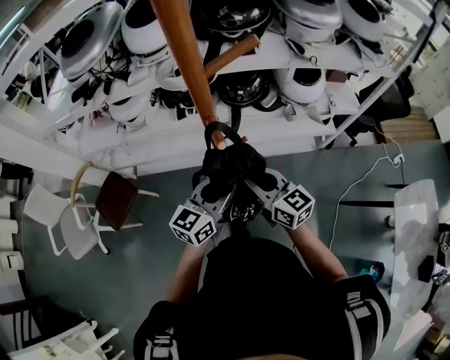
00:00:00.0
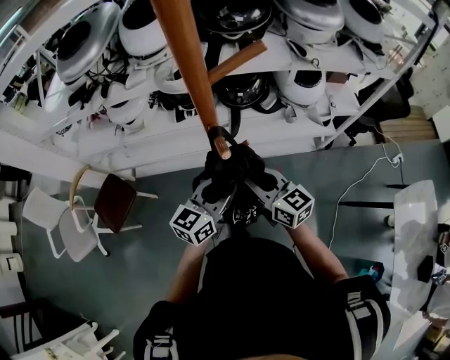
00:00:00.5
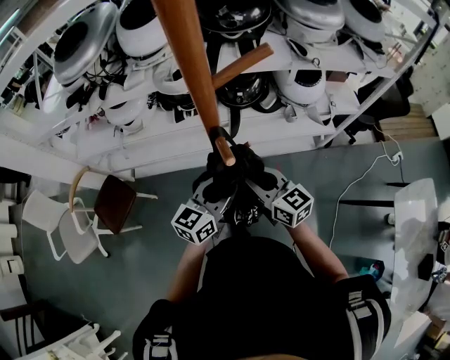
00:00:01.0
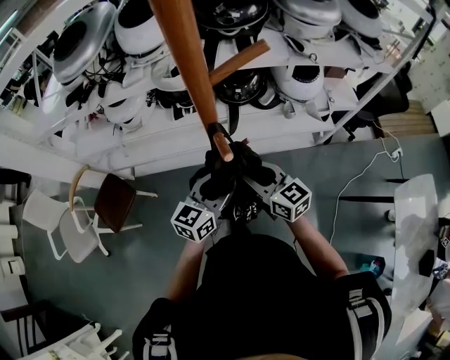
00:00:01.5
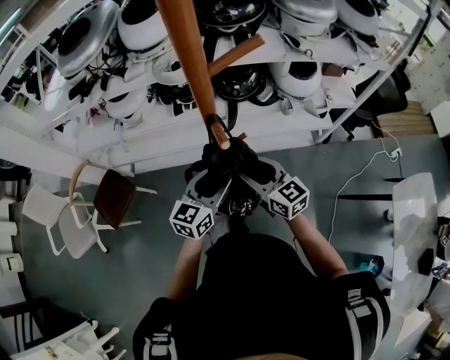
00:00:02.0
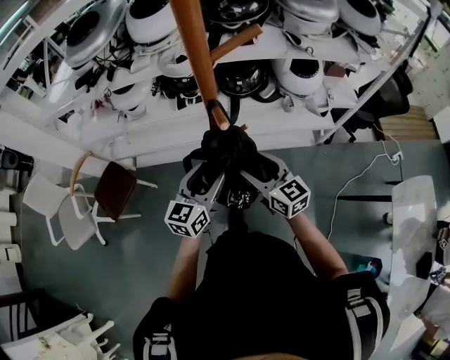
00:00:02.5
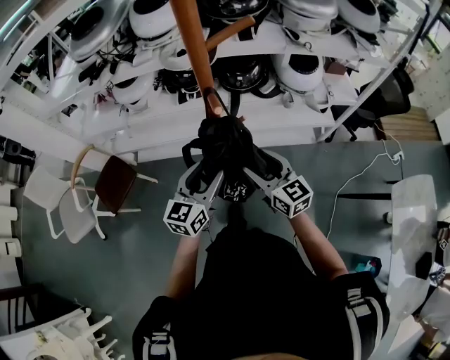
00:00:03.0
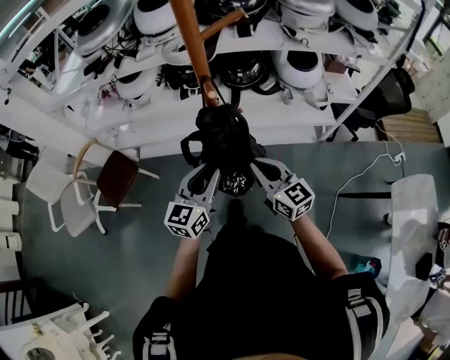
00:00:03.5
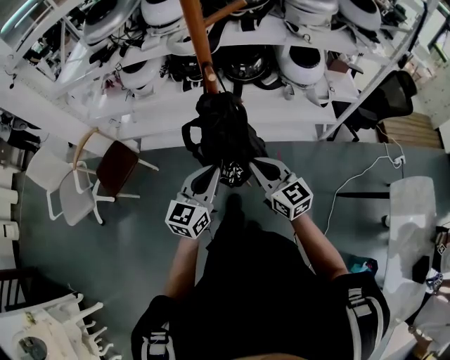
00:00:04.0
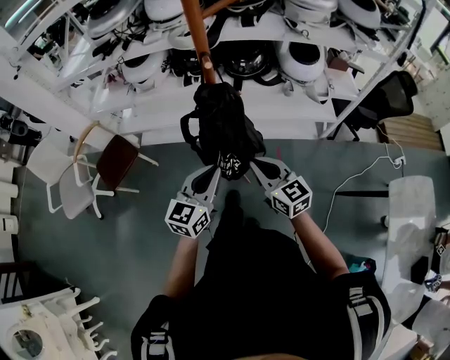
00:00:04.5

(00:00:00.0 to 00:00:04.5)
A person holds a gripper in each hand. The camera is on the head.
00:00:00.0 - 00:00:02.0: The left gripper opens up. The right gripper opens.
00:00:02.0 - 00:00:04.5: The grippers both shift backward by about 20 cm. The right gripper closes; the left gripper closes.

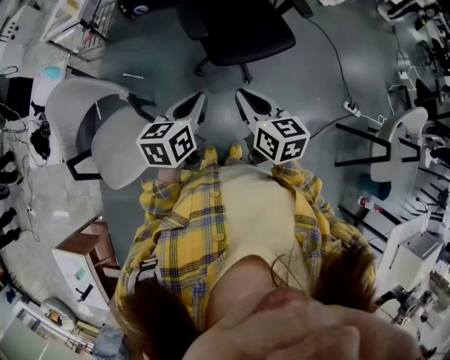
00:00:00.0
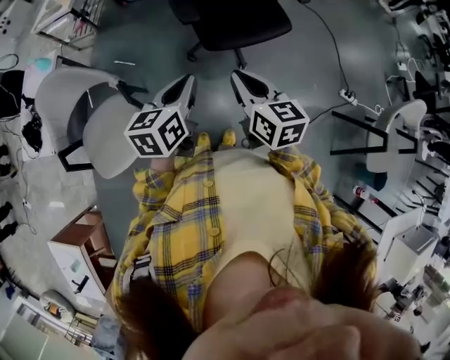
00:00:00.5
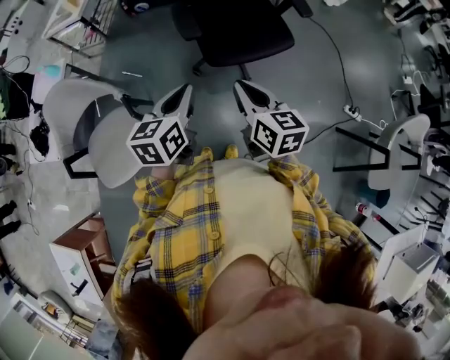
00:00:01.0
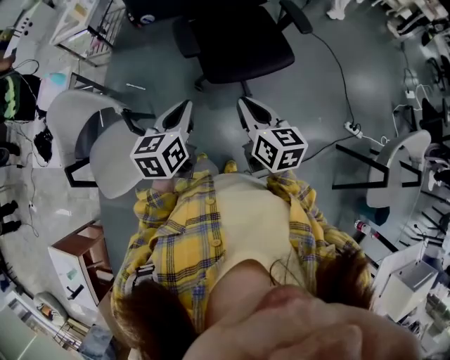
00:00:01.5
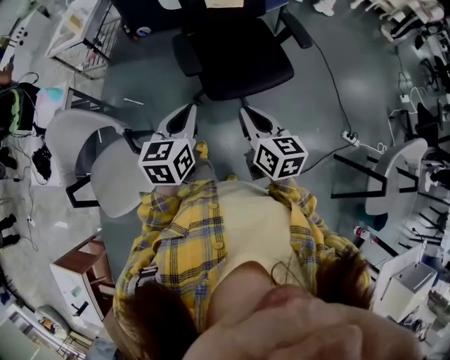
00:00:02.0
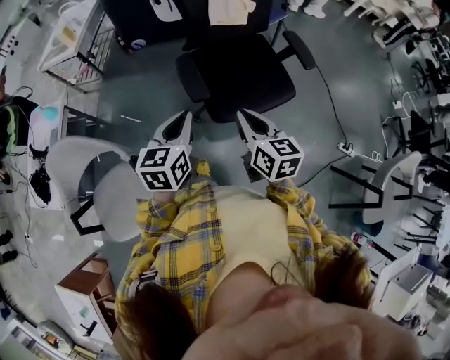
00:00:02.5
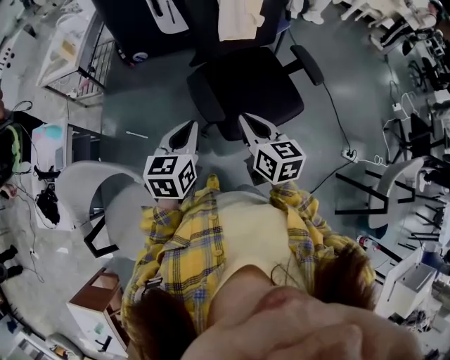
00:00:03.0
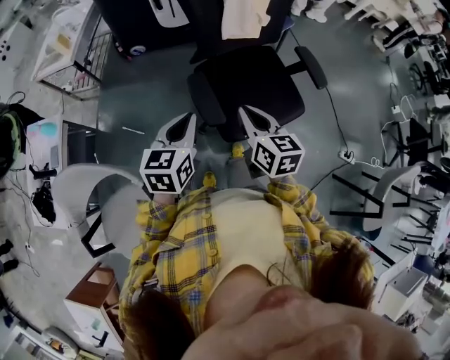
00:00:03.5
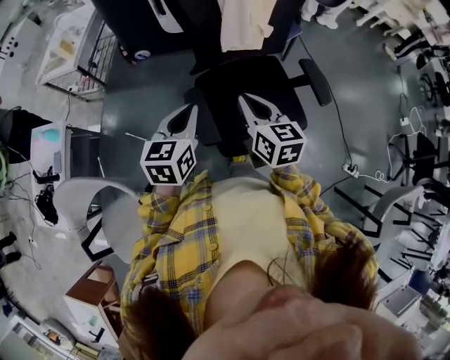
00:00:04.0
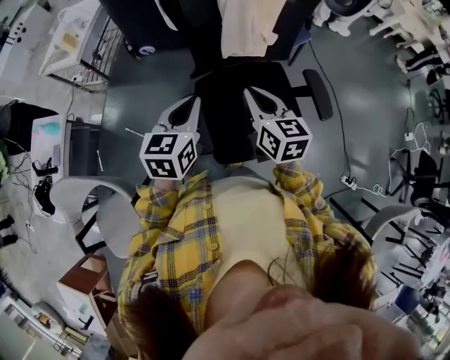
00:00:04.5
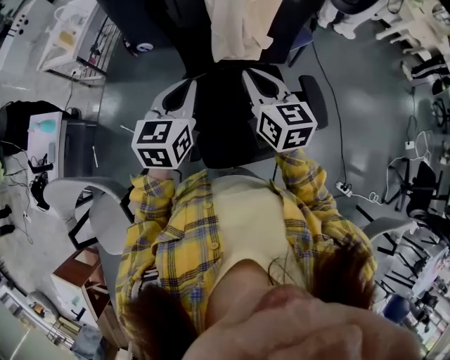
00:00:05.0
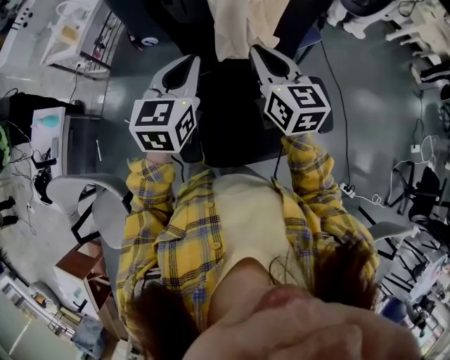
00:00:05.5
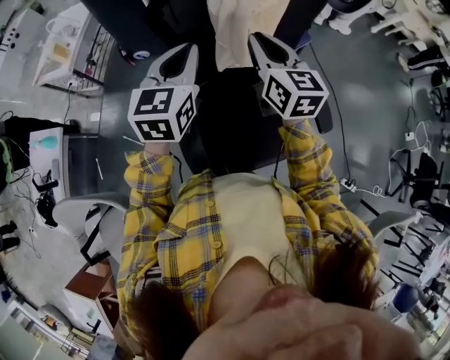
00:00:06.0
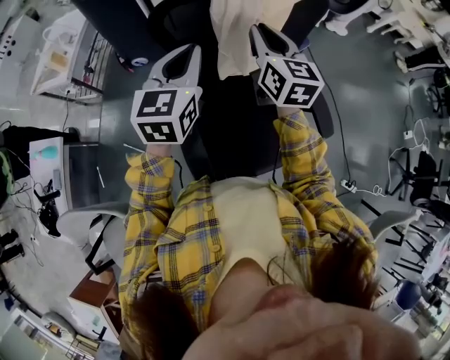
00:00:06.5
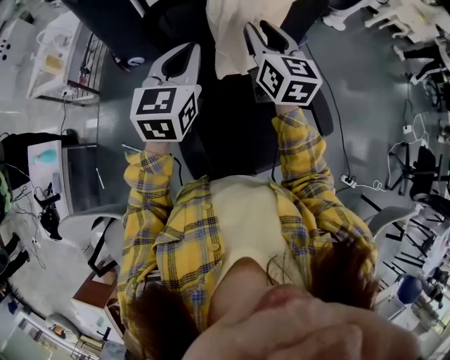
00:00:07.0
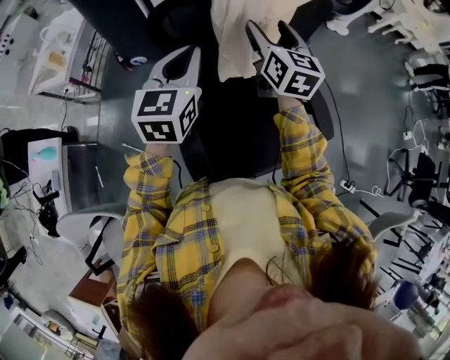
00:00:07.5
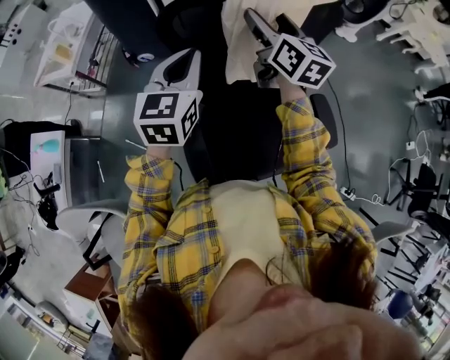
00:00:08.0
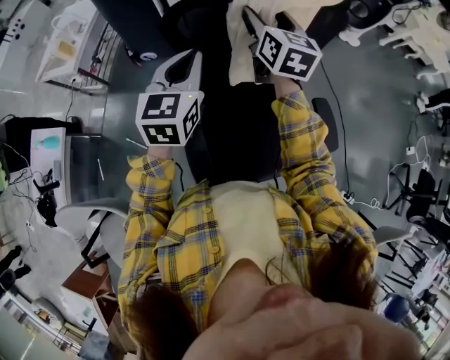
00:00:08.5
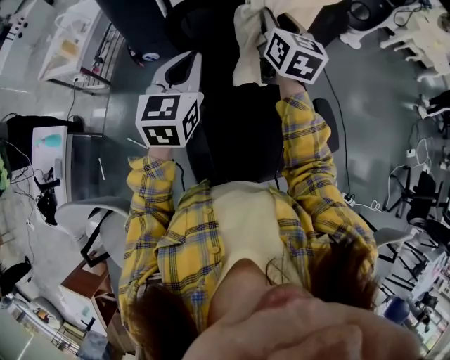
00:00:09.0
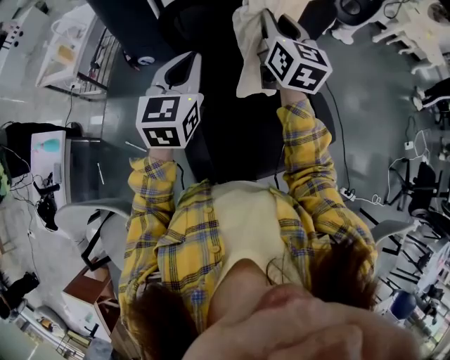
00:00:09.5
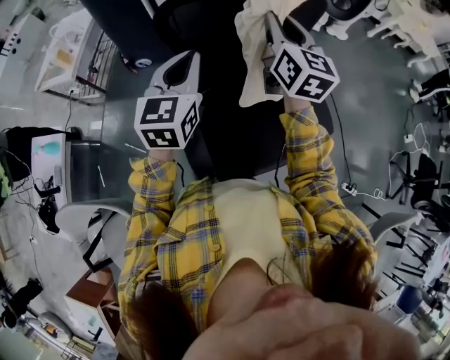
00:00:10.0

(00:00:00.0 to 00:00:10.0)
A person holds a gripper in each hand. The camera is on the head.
00:00:00.0 - 00:00:02.0: The right gripper shifts approximately 15 cm forward and to the right; the left gripper moves forward, some 10 cm.
00:00:02.0 - 00:00:04.0: The two grippers go about 30 cm forward.
00:00:04.0 - 00:00:06.0: The left gripper heads forward and upward, covering some 25 cm. The right gripper moves forward, roughly 25 cm.
00:00:06.0 - 00:00:08.0: The left gripper shifts by about 5 cm; the right gripper is displaced forward by some 10 cm, and opens.
00:00:08.0 - 00:00:10.0: The two grippers go about 5 cm backward. The right gripper closes its fingers.

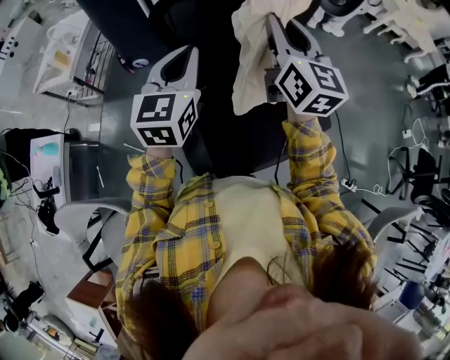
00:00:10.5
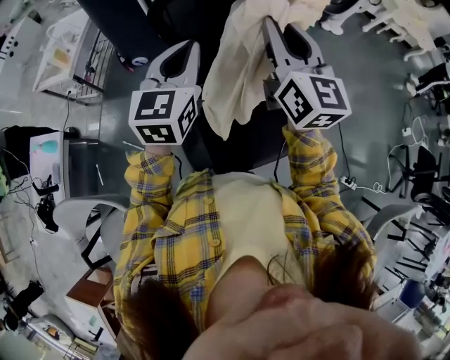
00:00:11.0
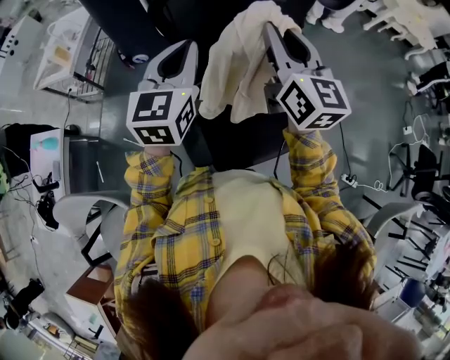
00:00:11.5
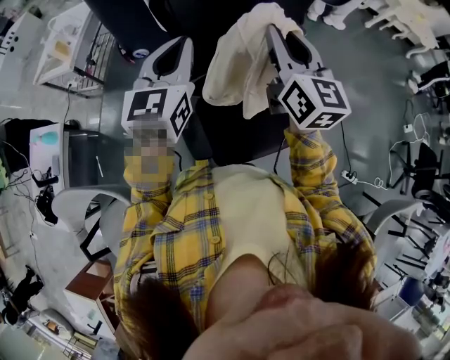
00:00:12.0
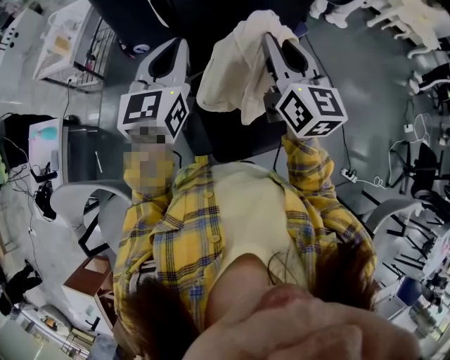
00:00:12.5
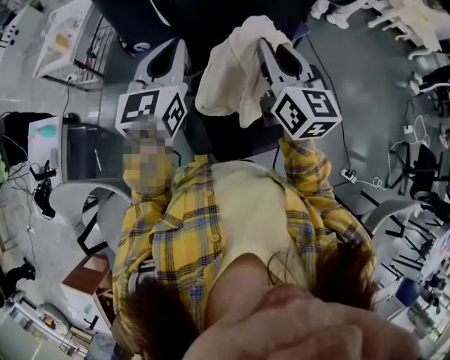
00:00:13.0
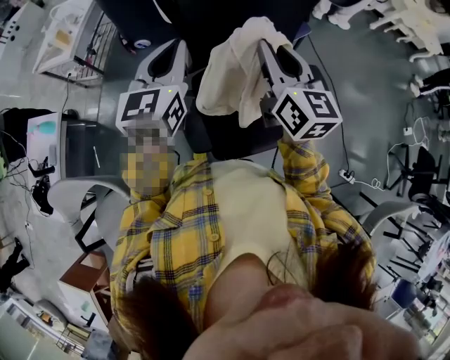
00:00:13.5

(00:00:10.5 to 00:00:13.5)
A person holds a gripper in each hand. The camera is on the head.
00:00:10.5 - 00:00:12.0: The right gripper shifts about 5 cm backward.
00:00:12.0 - 00:00:13.5: The right gripper shifts by about 5 cm.

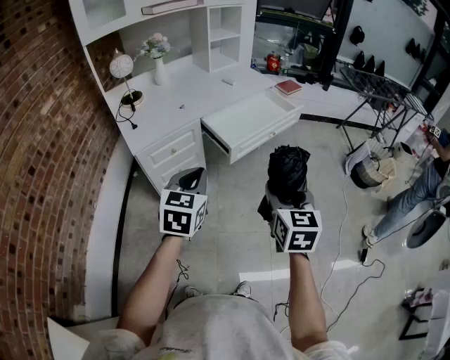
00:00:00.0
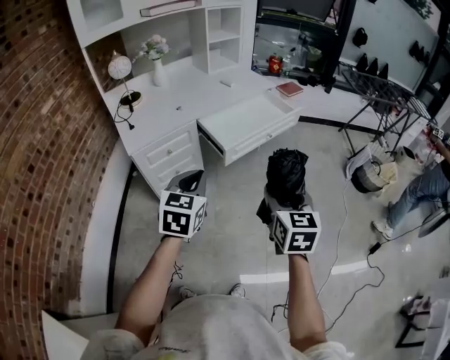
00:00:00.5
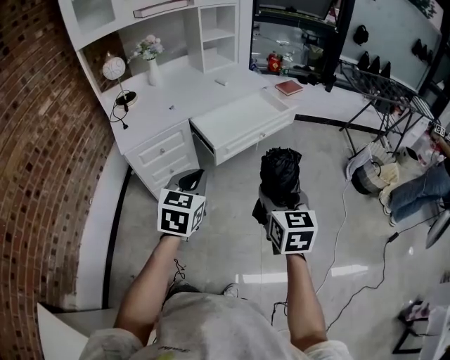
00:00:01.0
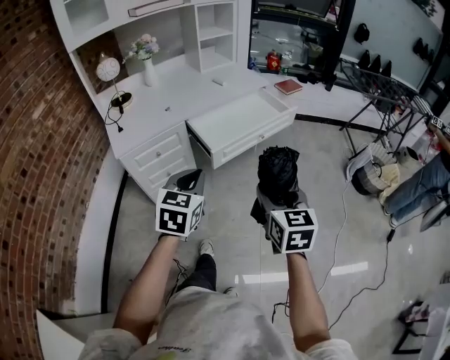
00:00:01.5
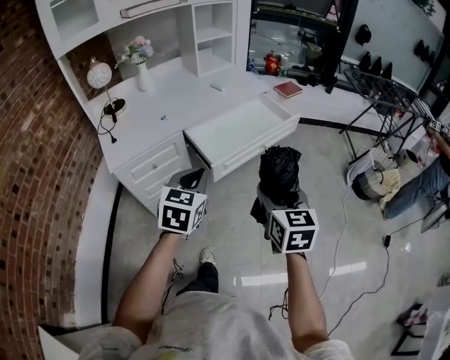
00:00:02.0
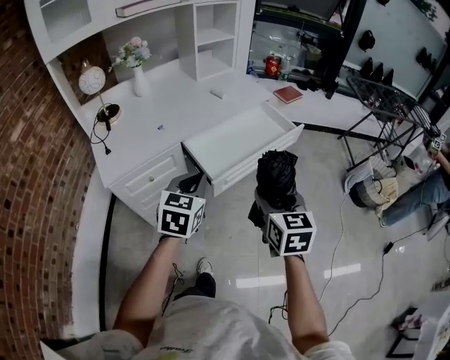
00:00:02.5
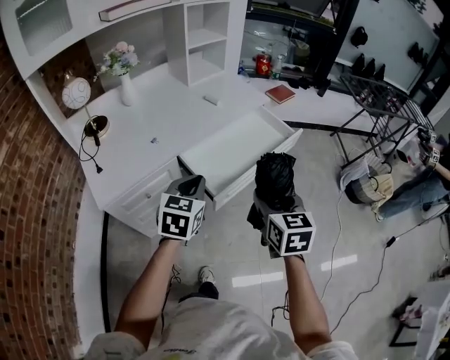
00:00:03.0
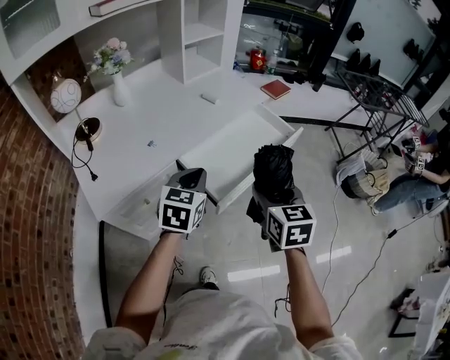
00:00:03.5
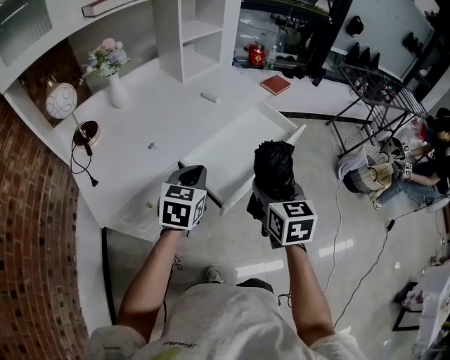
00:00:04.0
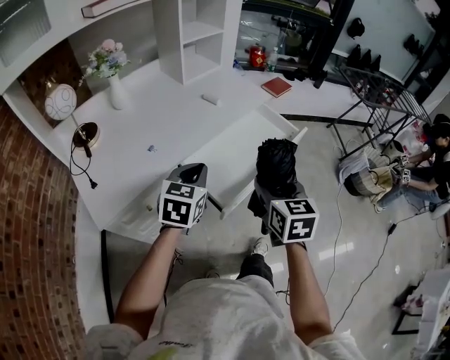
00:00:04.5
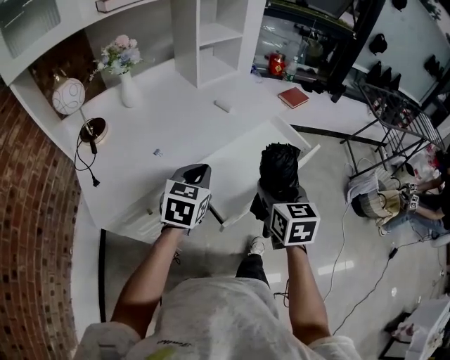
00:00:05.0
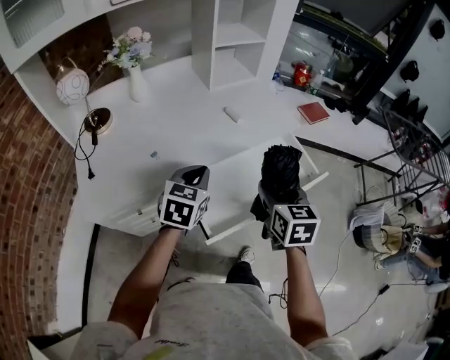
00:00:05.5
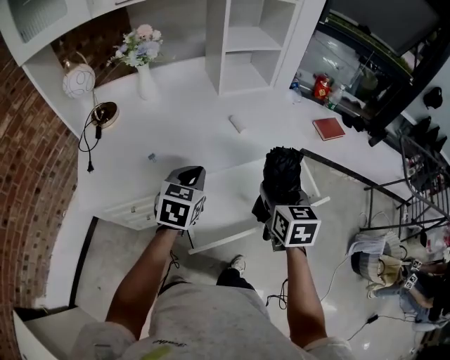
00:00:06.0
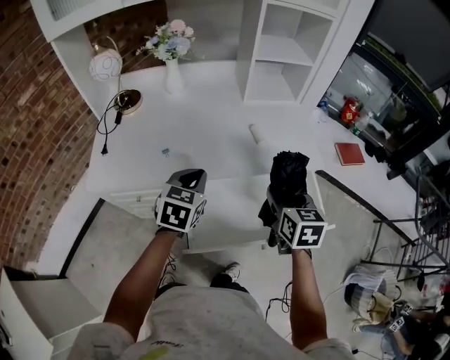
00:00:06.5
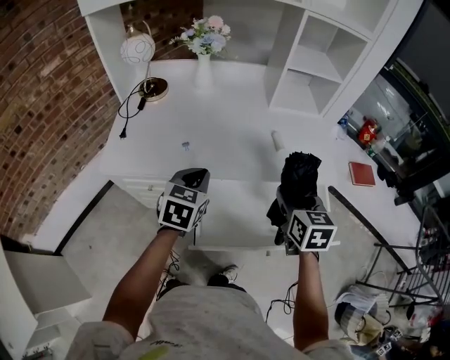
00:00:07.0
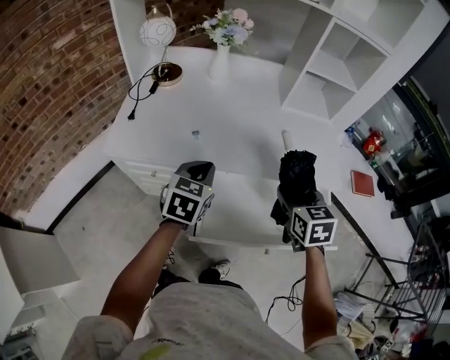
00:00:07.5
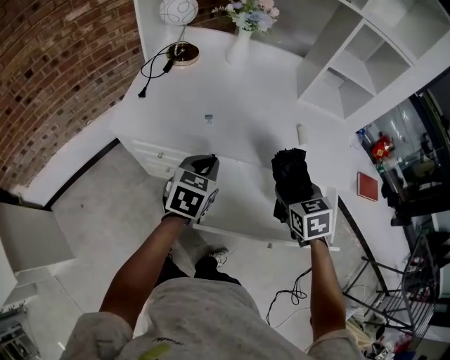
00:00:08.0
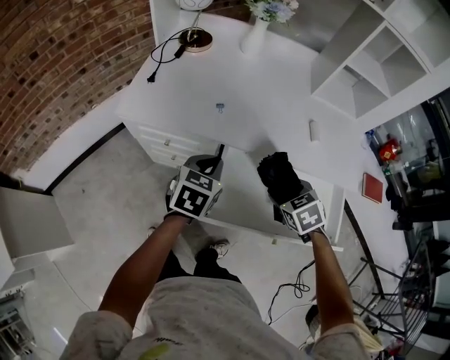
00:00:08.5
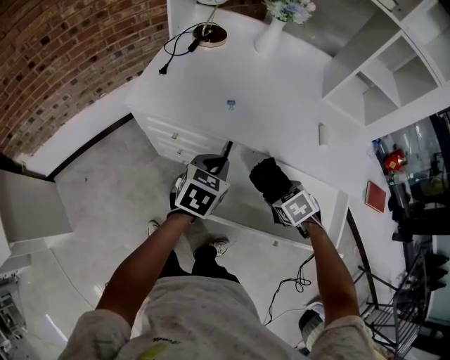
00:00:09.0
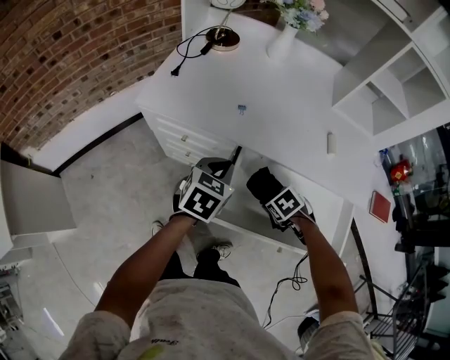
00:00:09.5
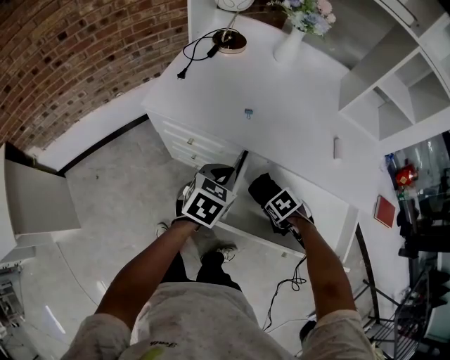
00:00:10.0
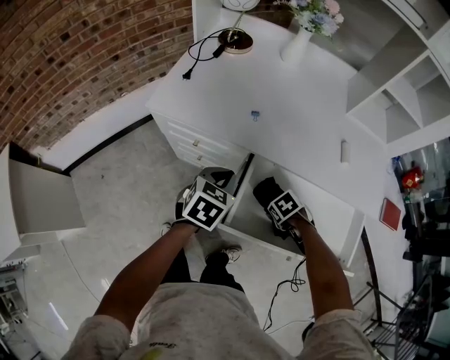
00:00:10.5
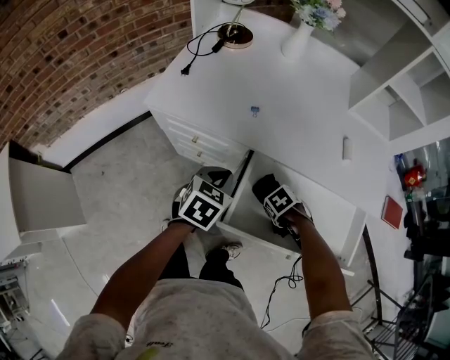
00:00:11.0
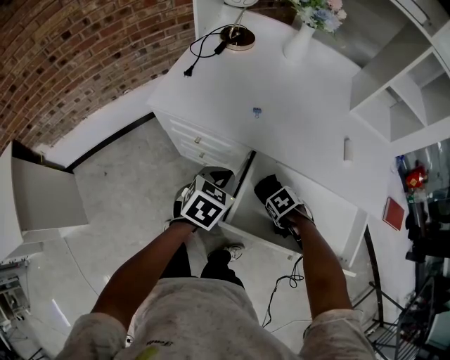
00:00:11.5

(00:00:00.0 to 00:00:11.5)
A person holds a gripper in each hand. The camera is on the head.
00:00:00.0 - 00:00:02.0: Both grippers travel together forward and to the right, roughly 15 cm.
00:00:02.0 - 00:00:04.0: Both grippers travel together forward and to the left, roughly 25 cm.
00:00:04.0 - 00:00:06.0: The left gripper travels forward by roughly 15 cm, and rotates some 20 degrees. The right gripper travels forward by some 25 cm, and changes its angle by about 20 degrees.
00:00:06.0 - 00:00:07.5: The right gripper heads forward and to the left, covering about 10 cm, and rotates roughly 30 degrees, while the left gripper travels to the left by about 10 cm, and rotates some 20 degrees.
00:00:07.5 - 00:00:09.5: The right gripper moves downward, some 25 cm, and tilts its fingers about 40 degrees downward, while the left gripper moves downward, some 5 cm.
00:00:09.5 - 00:00:11.5: The right gripper heads downward, covering approximately 5 cm.
